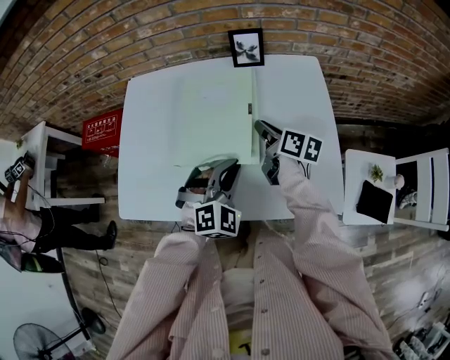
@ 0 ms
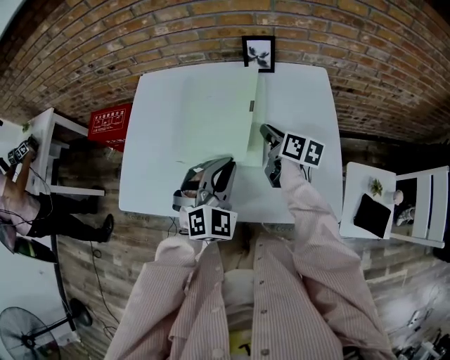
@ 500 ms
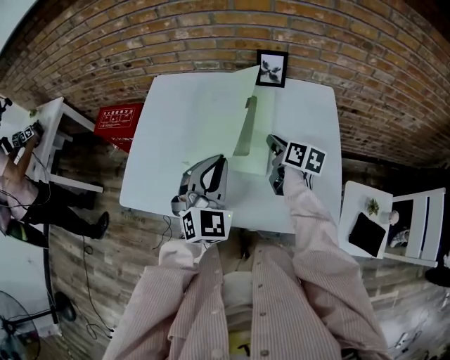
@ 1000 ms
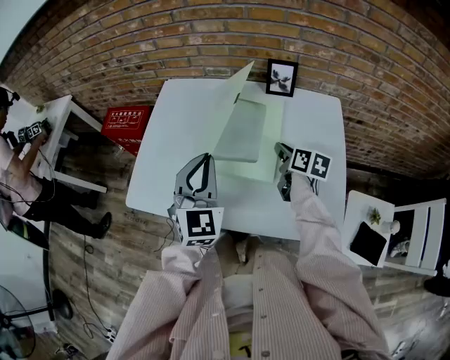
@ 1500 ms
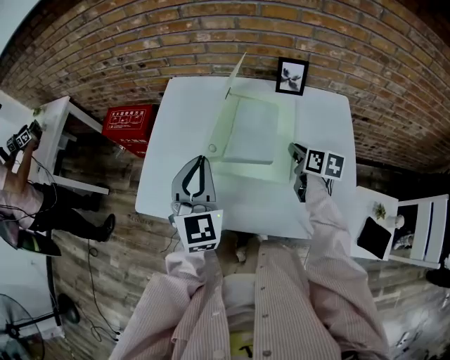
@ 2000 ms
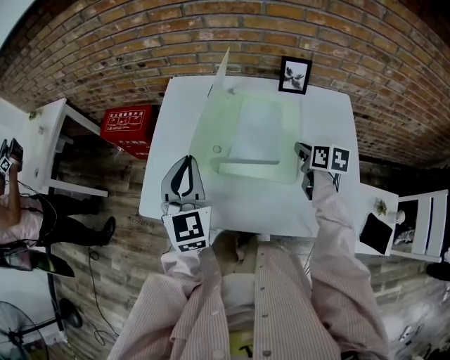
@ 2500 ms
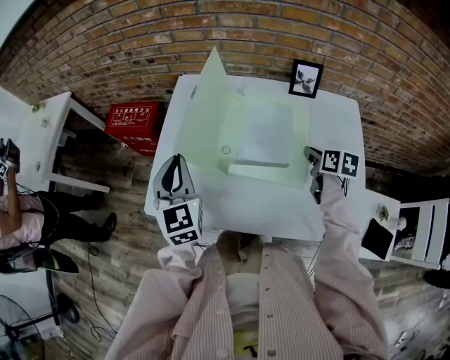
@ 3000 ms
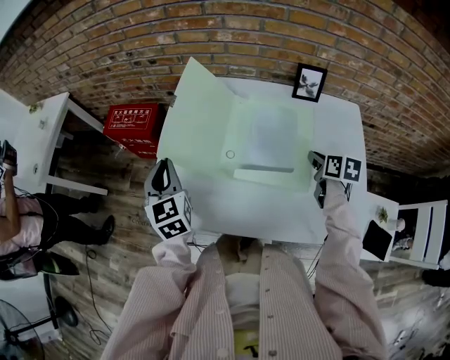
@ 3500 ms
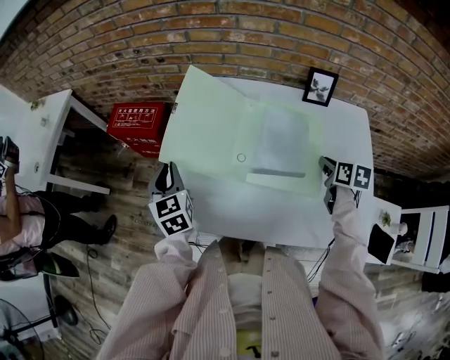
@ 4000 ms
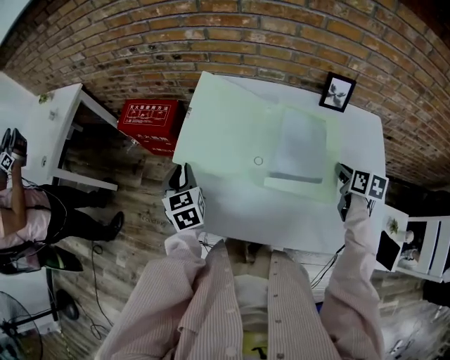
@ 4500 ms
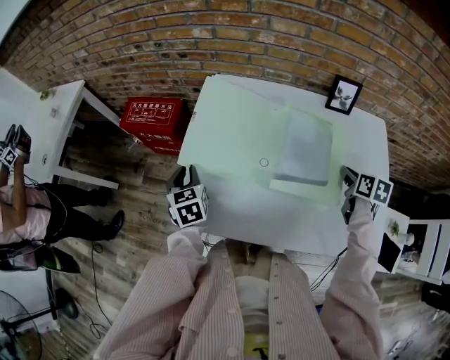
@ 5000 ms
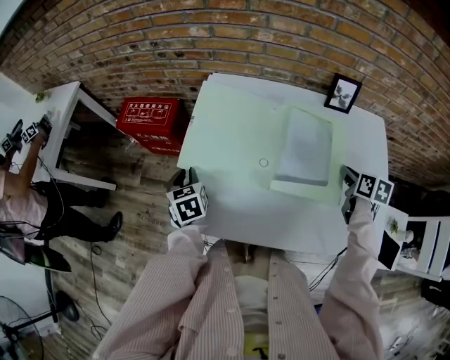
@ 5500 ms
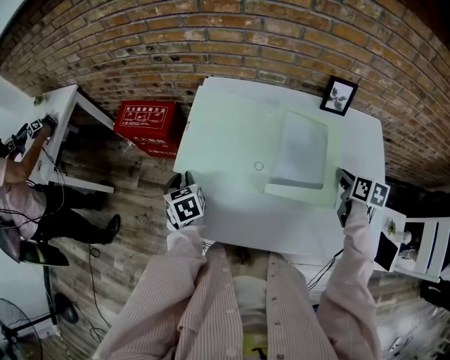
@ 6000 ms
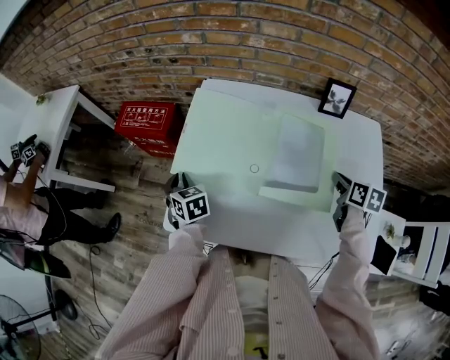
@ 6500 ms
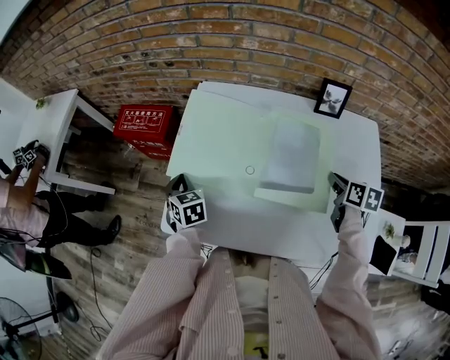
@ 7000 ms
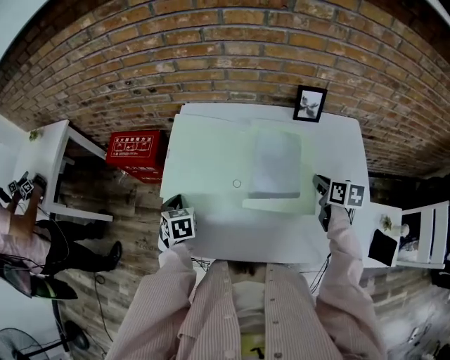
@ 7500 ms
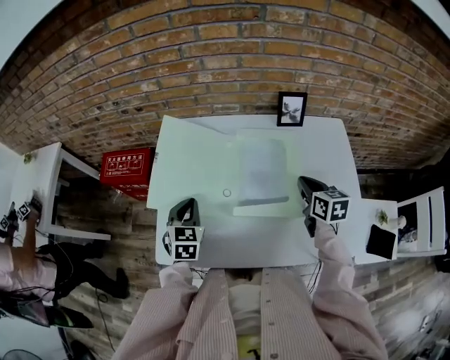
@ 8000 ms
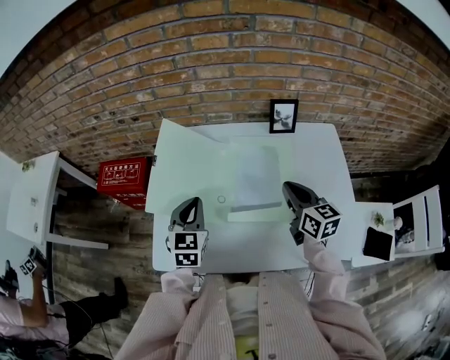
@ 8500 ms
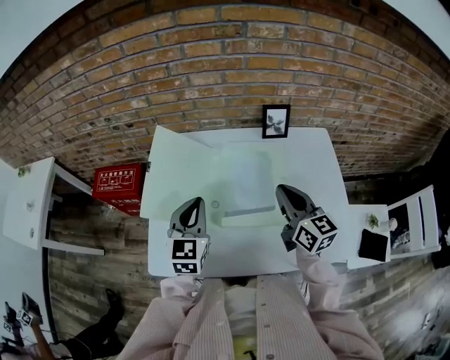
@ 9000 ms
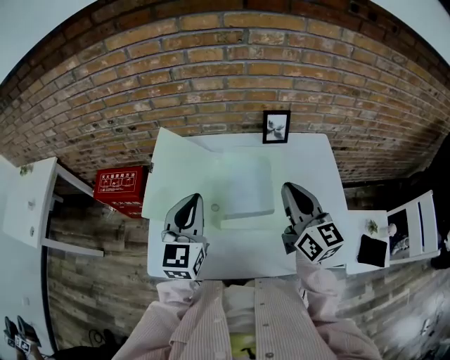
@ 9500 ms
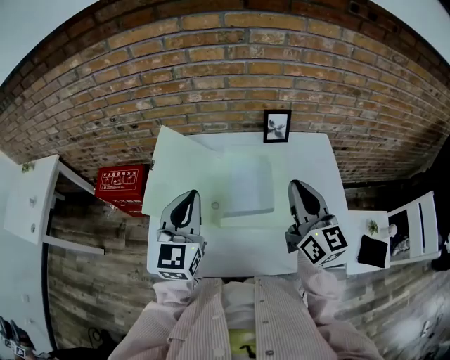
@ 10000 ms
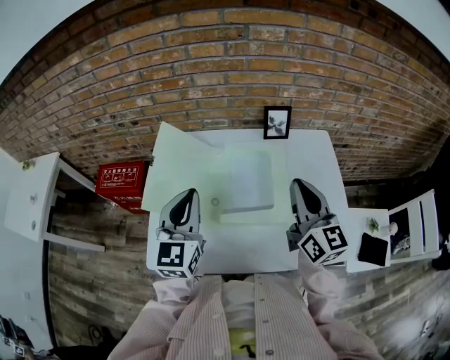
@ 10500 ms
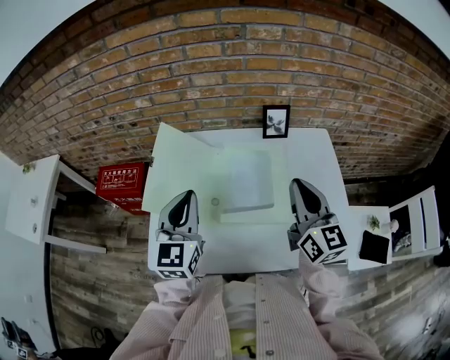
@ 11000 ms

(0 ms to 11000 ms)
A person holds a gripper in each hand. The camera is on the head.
0 ms - 2000 ms: The right gripper rotates about 20 degrees. Meanwhile the left gripper moves to the left and upward, some 20 cm, and turns by roughly 60 degrees.
2000 ms - 3500 ms: The left gripper is displaced to the left and forward by approximately 20 cm, and rotates roughly 20 degrees.
3500 ms - 5500 ms: The left gripper heads downward and to the left, covering some 15 cm, and changes its angle by about 30 degrees.
5500 ms - 7500 ms: The grippers move only a little.
7500 ms - 9000 ms: The right gripper heads upward and to the left, covering roughly 15 cm, and points its fingers roughly 40 degrees further upward; the left gripper is displaced to the right and upward by about 25 cm, and points its fingers approximately 30 degrees further upward.
9000 ms - 11000 ms: The grippers both shift upward by roughly 10 cm.

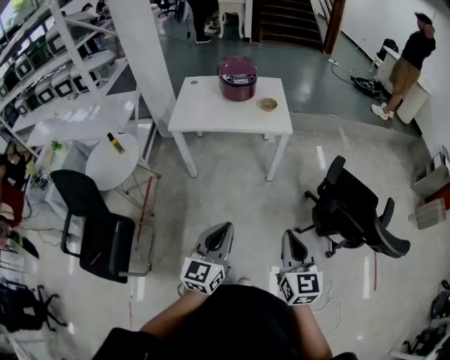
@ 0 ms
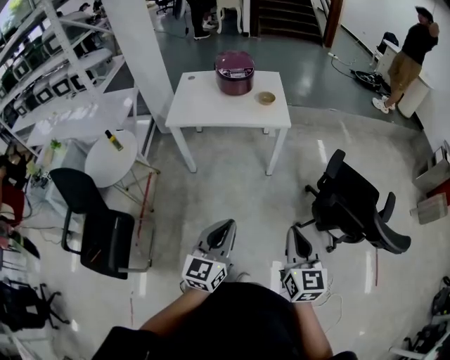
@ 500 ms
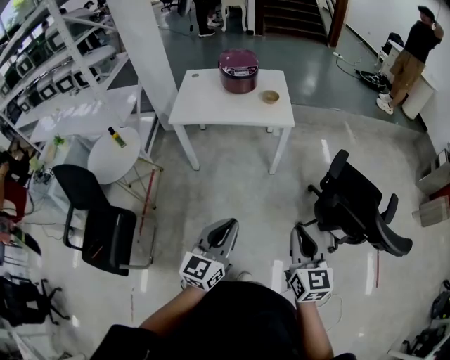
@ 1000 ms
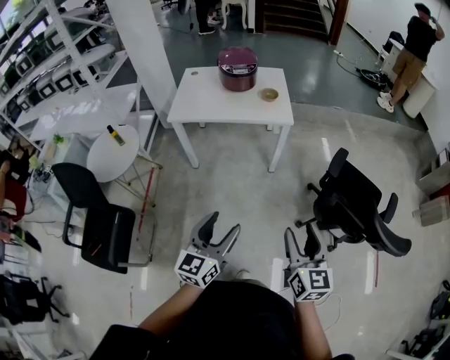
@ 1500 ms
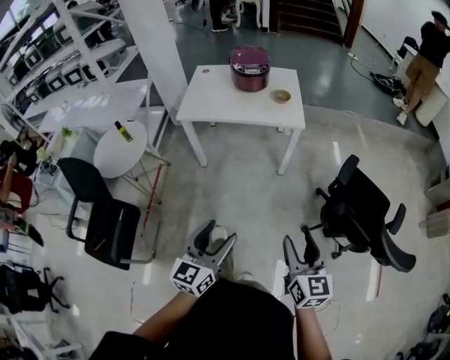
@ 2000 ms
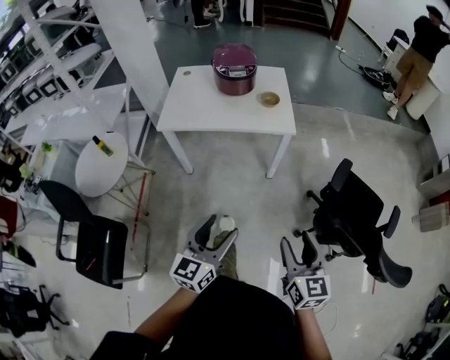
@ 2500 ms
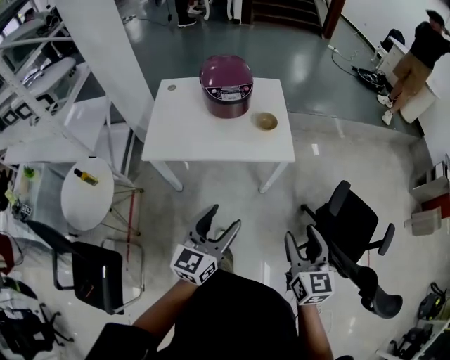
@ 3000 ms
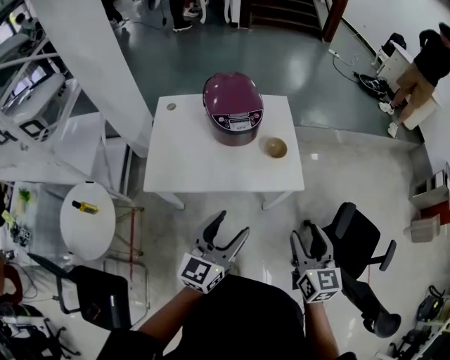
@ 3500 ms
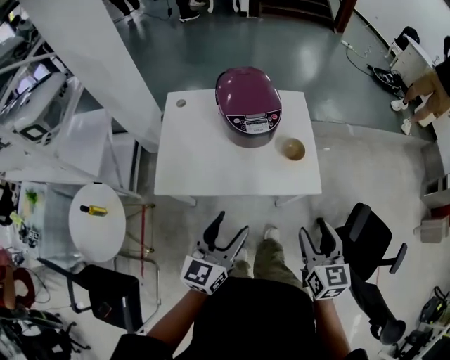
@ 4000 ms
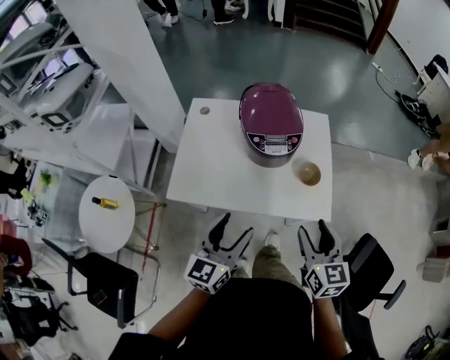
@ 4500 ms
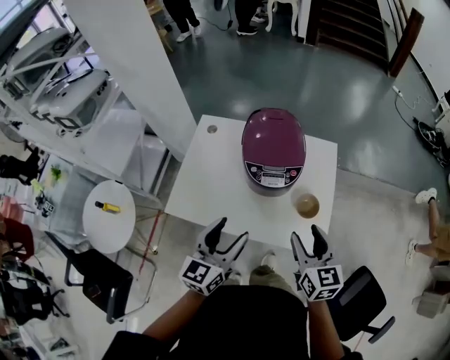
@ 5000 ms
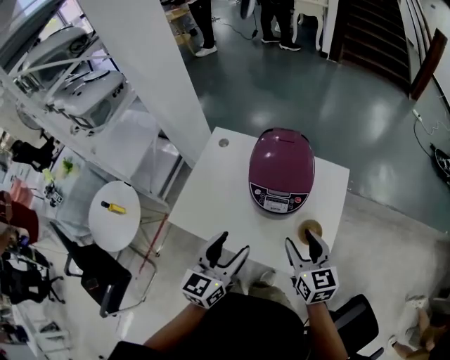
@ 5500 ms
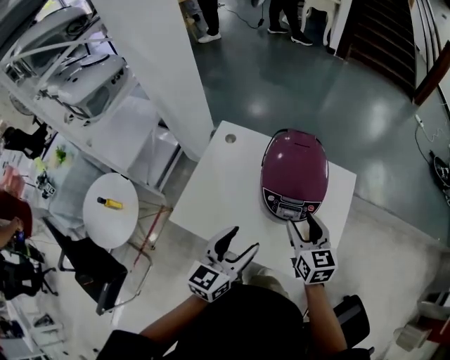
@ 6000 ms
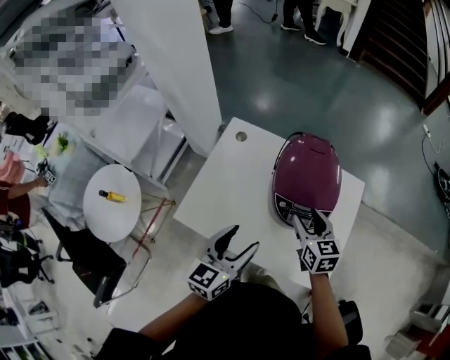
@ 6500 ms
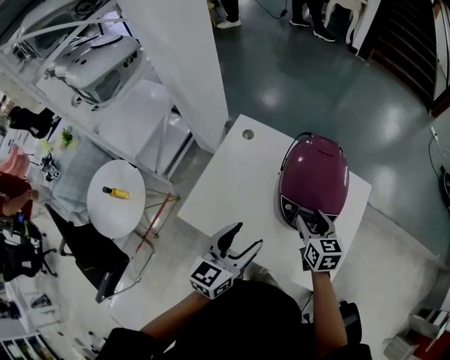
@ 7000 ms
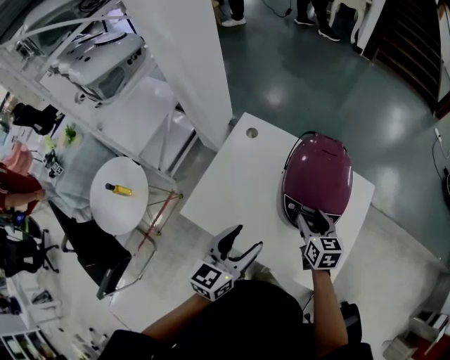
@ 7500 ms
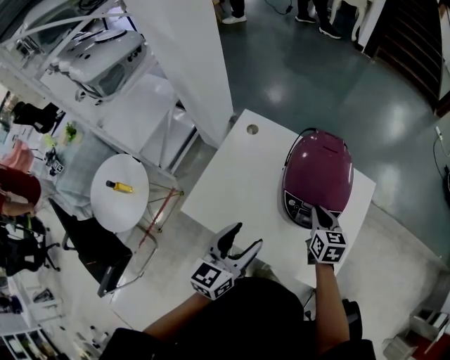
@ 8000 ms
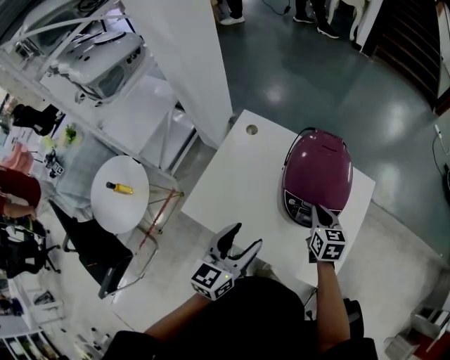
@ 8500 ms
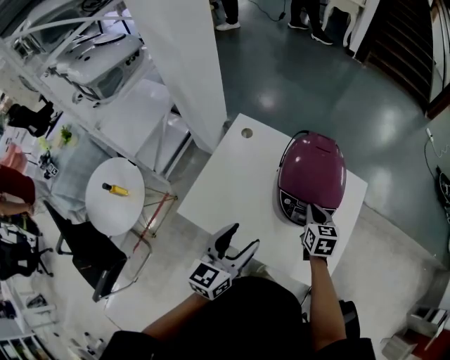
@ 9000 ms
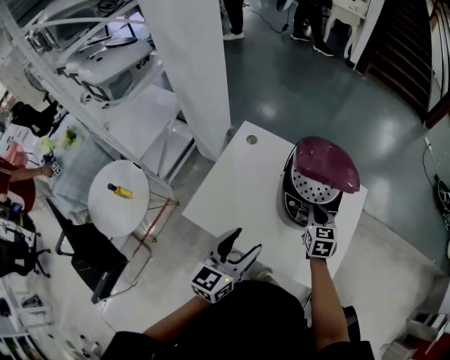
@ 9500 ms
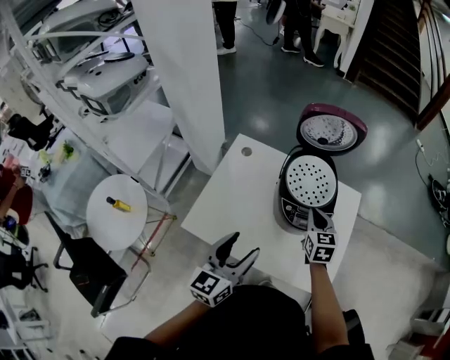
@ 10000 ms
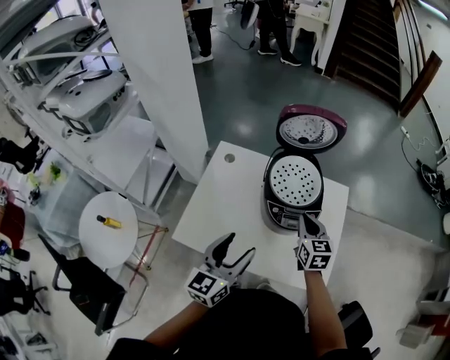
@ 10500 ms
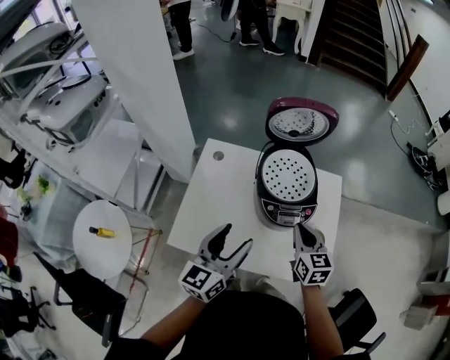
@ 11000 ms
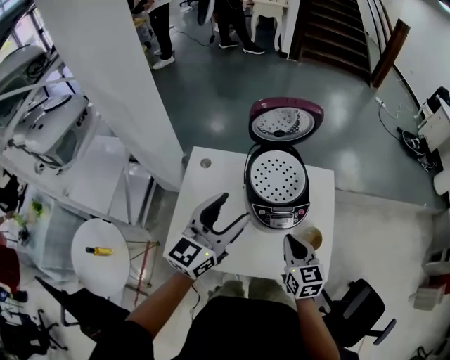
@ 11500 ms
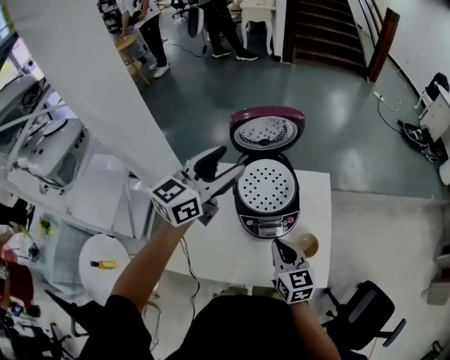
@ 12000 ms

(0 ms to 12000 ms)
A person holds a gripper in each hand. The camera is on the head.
0 ms - 2000 ms: The right gripper shifts by some 5 cm, and opens, while the left gripper opens its fingers.
2000 ms - 4000 ms: Both grippers are carried forward, roughly 50 cm.
4000 ms - 6000 ms: The left gripper moves roughly 20 cm; the right gripper changes place by some 35 cm, and swivels about 30 degrees.
6000 ms - 8000 ms: The left gripper ends up roughly 5 cm from where it was. Meanwhile the right gripper heads downward and forward, covering some 10 cm, and closes.
8000 ms - 10000 ms: The left gripper shifts by about 5 cm.
10000 ms - 12000 ms: The right gripper shifts some 10 cm backward. Meanwhile the left gripper shifts some 30 cm forward and upward, and rotates approximately 30 degrees.

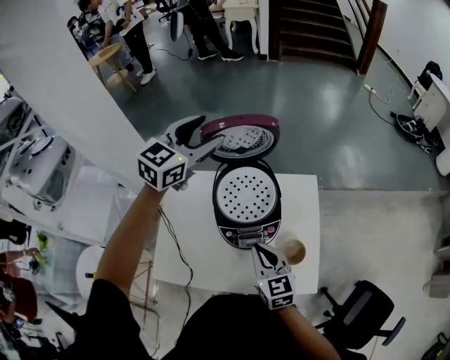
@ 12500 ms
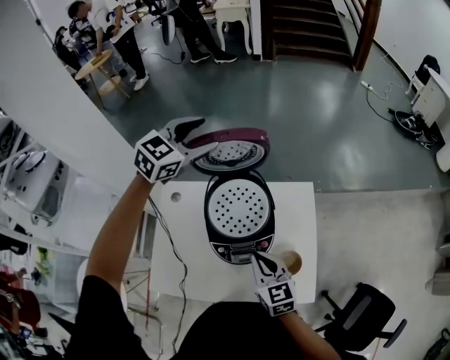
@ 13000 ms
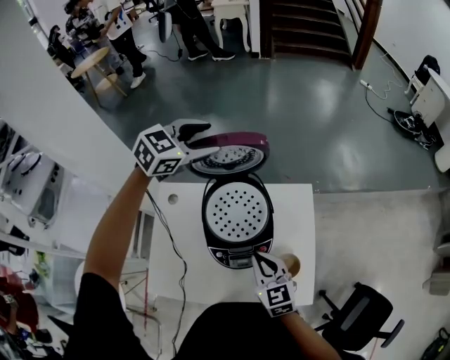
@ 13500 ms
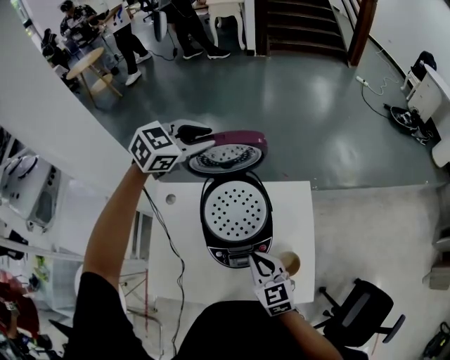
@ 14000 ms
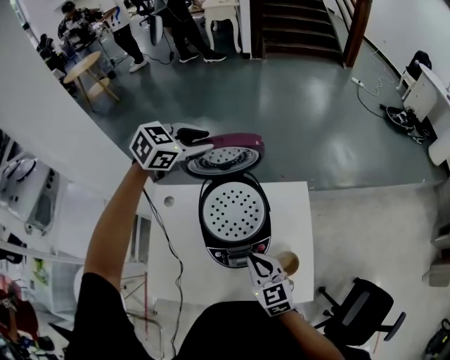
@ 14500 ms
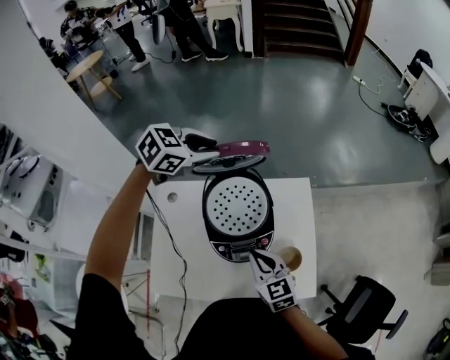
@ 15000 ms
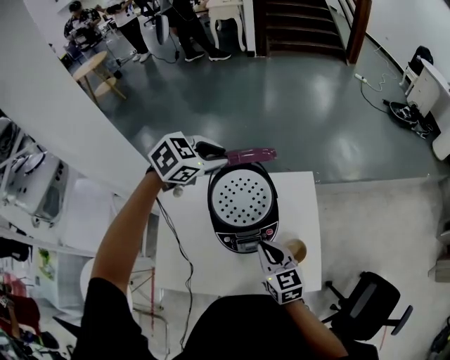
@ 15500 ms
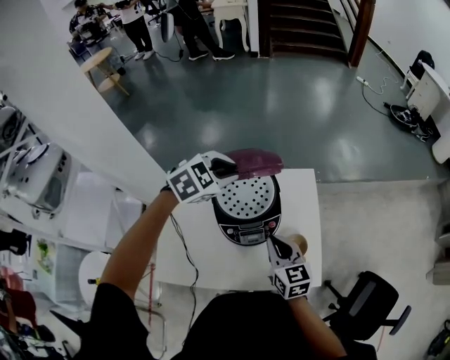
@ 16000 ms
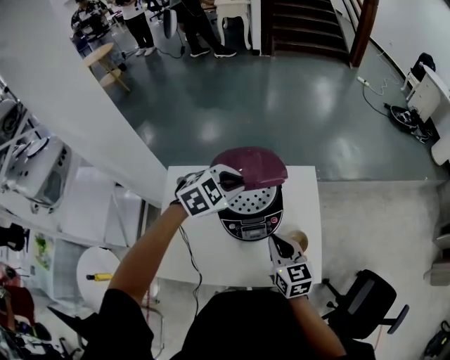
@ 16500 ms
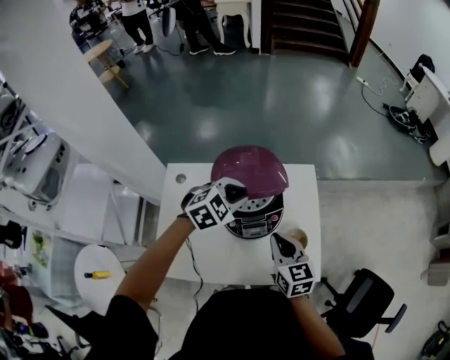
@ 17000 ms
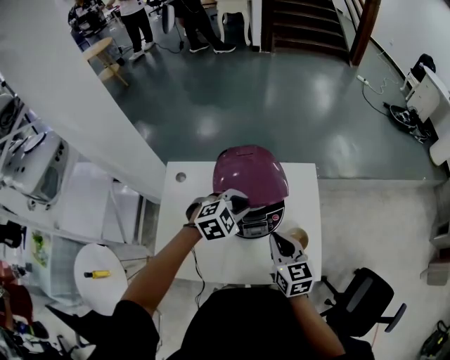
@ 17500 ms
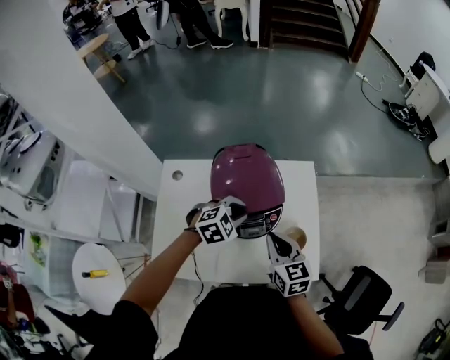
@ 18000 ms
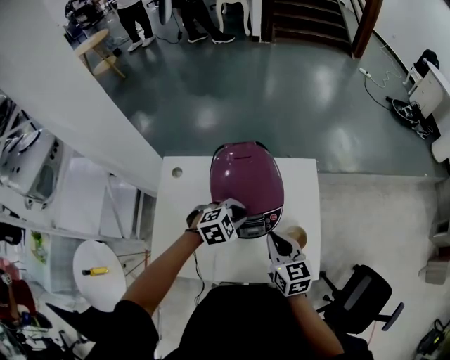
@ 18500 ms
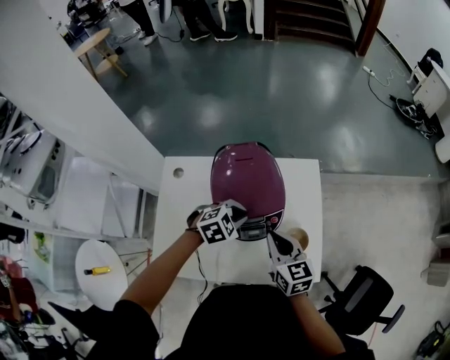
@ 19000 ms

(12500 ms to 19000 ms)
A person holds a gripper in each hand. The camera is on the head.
12500 ms - 14500 ms: The left gripper moves forward and downward, roughly 10 cm, rotates roughly 30 degrees, and closes.
14500 ms - 17000 ms: The left gripper heads backward, downward and to the right, covering approximately 25 cm, while the right gripper shifts by roughly 5 cm.
17000 ms - 19000 ms: The left gripper shifts approximately 10 cm downward.
